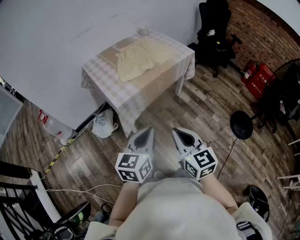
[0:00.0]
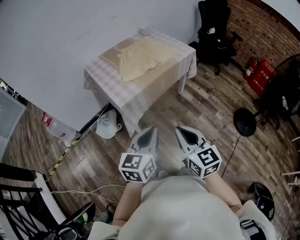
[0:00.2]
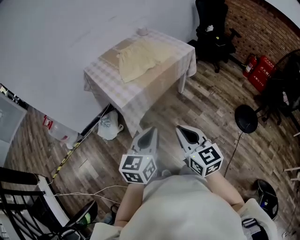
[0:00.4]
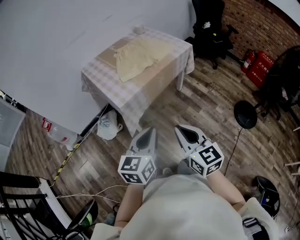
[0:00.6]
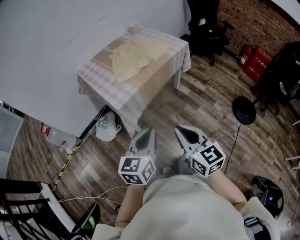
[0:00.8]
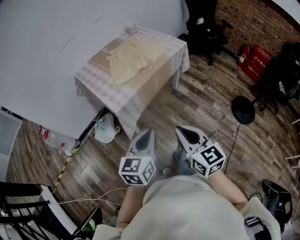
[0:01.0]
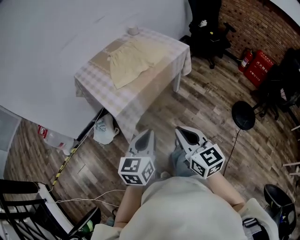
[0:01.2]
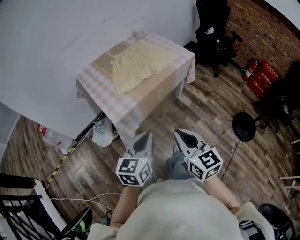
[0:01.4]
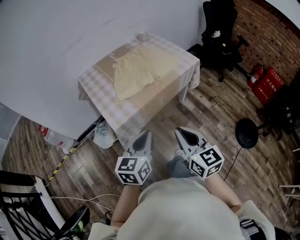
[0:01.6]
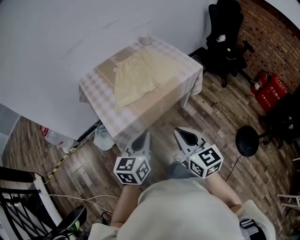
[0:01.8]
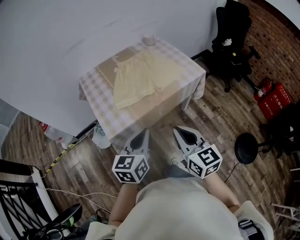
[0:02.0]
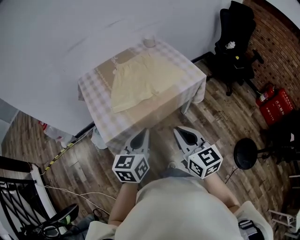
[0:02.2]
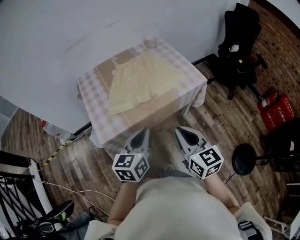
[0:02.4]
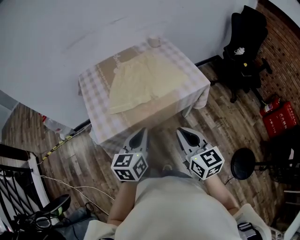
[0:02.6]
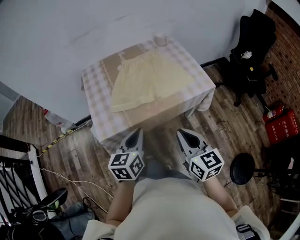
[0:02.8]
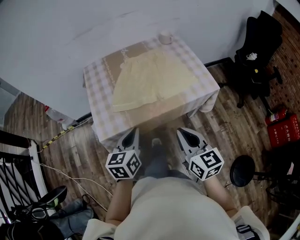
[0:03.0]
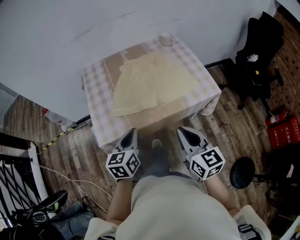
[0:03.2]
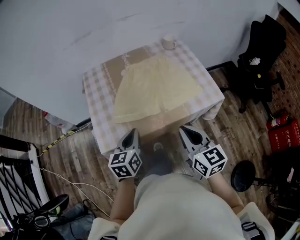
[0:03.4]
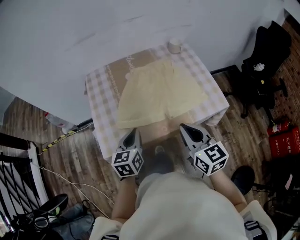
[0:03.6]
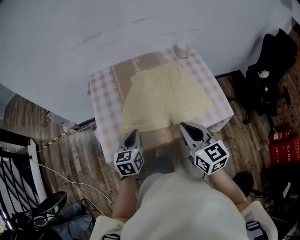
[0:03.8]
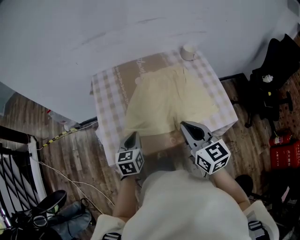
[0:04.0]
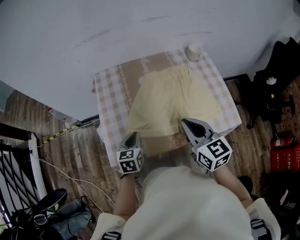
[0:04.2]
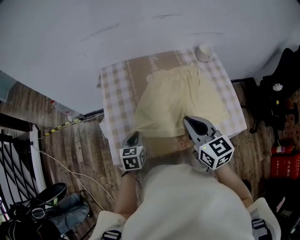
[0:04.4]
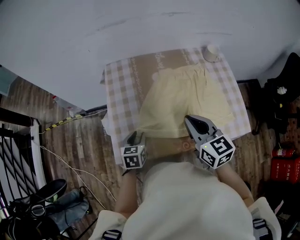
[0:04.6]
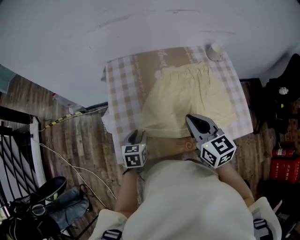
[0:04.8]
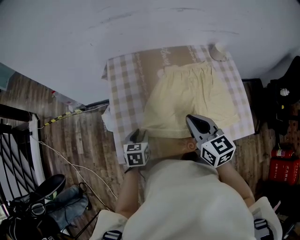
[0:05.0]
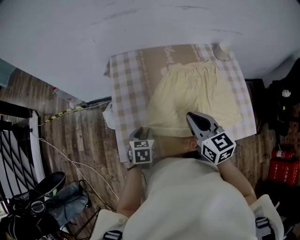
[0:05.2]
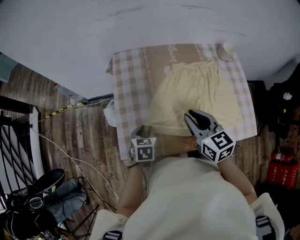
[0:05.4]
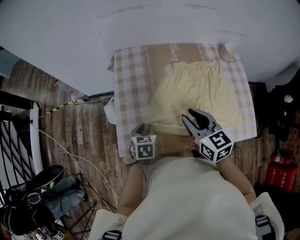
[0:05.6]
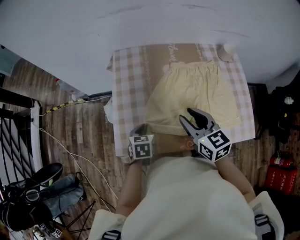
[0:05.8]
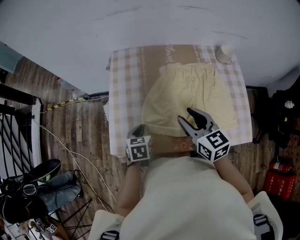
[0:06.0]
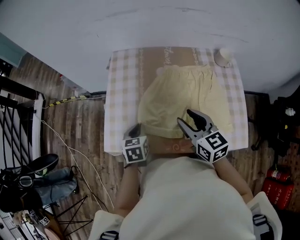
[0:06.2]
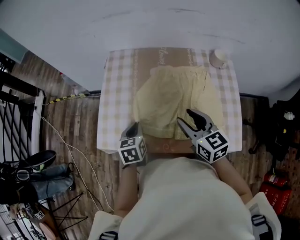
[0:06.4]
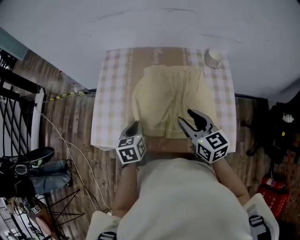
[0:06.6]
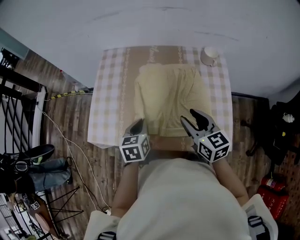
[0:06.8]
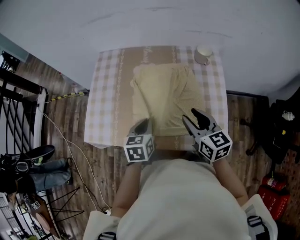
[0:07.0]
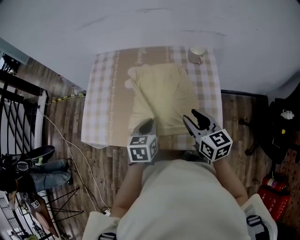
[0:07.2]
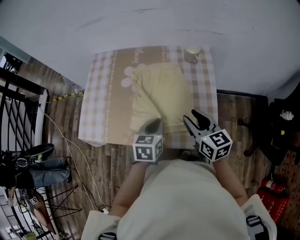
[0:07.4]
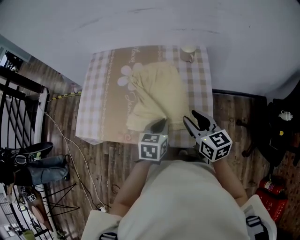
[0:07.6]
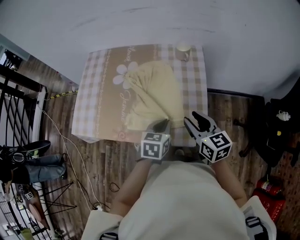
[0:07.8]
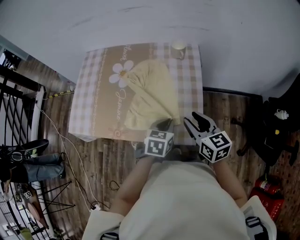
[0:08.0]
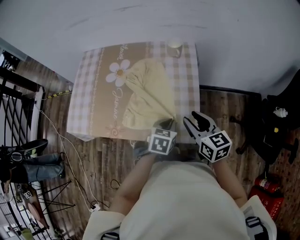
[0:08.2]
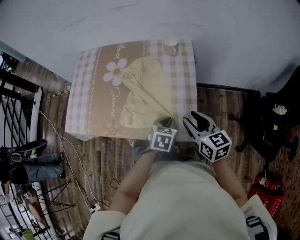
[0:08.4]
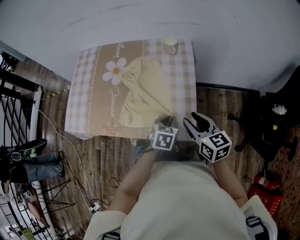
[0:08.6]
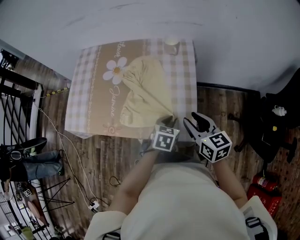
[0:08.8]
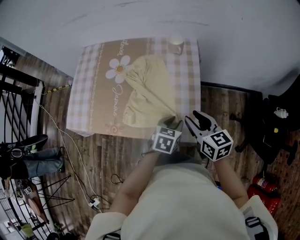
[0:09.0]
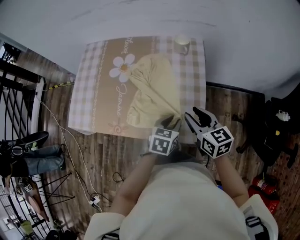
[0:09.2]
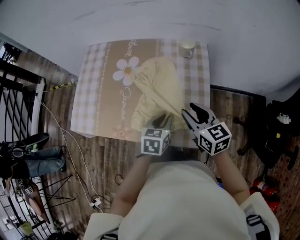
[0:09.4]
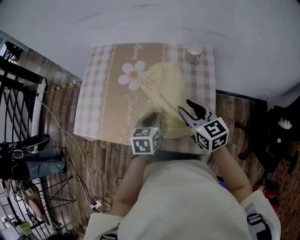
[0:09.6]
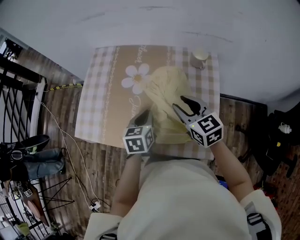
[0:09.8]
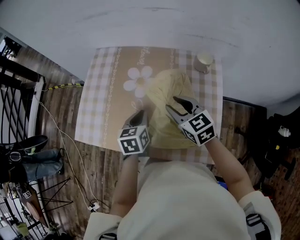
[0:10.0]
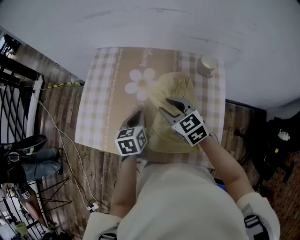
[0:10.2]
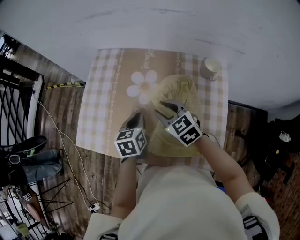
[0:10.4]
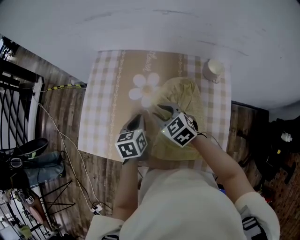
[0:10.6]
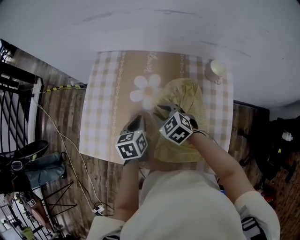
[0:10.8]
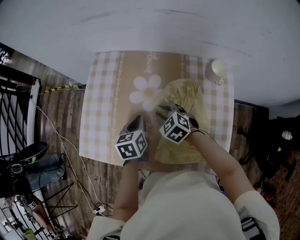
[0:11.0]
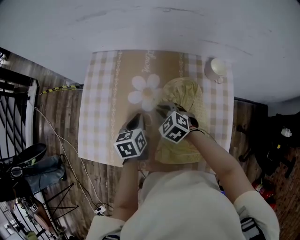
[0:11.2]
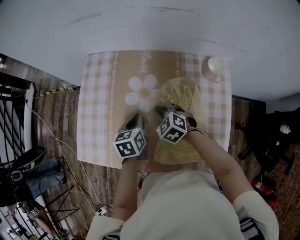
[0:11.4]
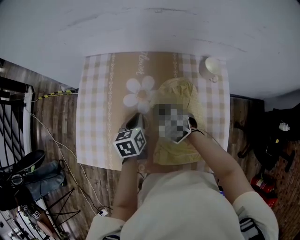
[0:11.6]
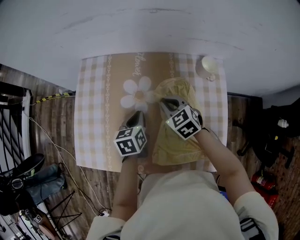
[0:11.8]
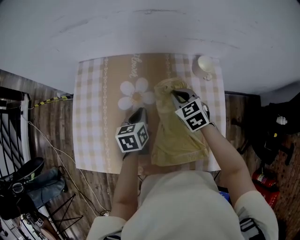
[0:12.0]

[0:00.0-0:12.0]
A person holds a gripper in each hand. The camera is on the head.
0:00.0 to 0:01.6: Both grippers move forward, roughly 15 cm.
0:01.6 to 0:03.0: The right gripper is displaced forward and to the right by roughly 20 cm; the left gripper shifts about 15 cm forward, and turns by roughly 30 degrees.
0:03.0 to 0:04.4: The right gripper goes some 25 cm forward, while the left gripper is displaced forward, downward and to the left by some 25 cm, and swivels roughly 20 degrees.
0:04.4 to 0:06.0: The left gripper opens, then closes once more; the right gripper is displaced downward by some 5 cm, and opens up.
0:06.0 to 0:07.6: The two grippers go roughly 30 cm to the right.
0:07.6 to 0:09.0: The right gripper heads to the right, covering about 5 cm; the left gripper is displaced to the right by approximately 15 cm, and opens its fingers.
0:09.0 to 0:10.4: The right gripper changes place by some 30 cm, and swivels some 30 degrees. Meanwhile the left gripper changes place by about 35 cm, rotates roughly 30 degrees, and closes.
0:10.4 to 0:12.0: The left gripper shifts approximately 5 cm forward. The right gripper shifts about 15 cm to the right and forward, swivels some 20 degrees, and closes.

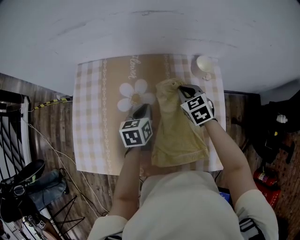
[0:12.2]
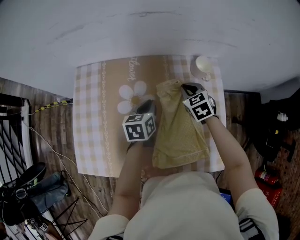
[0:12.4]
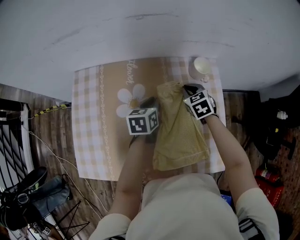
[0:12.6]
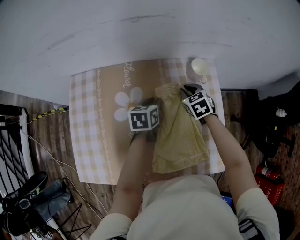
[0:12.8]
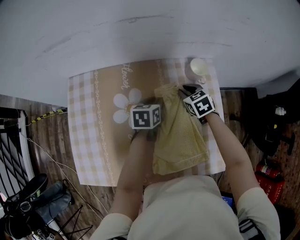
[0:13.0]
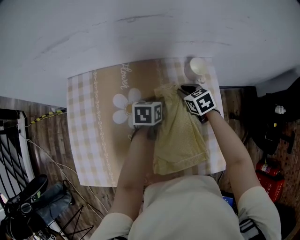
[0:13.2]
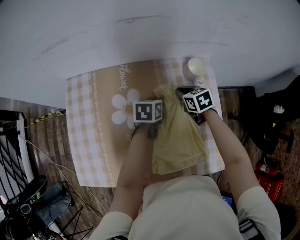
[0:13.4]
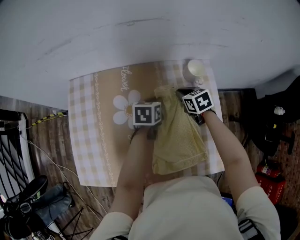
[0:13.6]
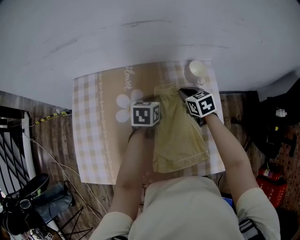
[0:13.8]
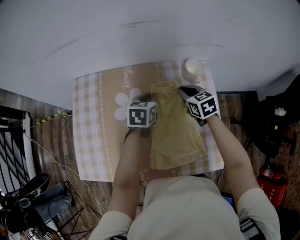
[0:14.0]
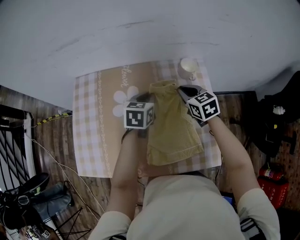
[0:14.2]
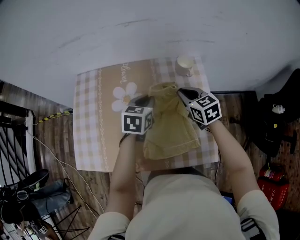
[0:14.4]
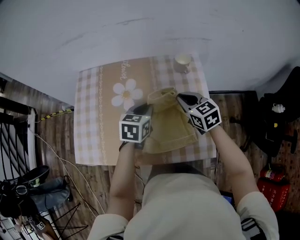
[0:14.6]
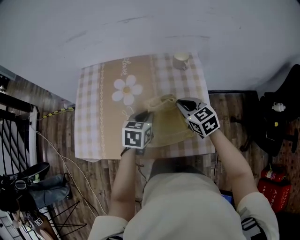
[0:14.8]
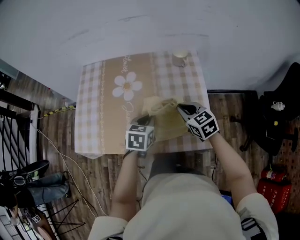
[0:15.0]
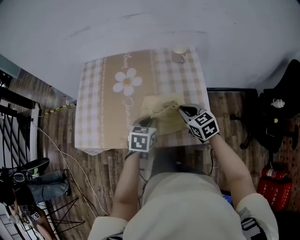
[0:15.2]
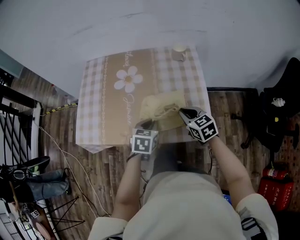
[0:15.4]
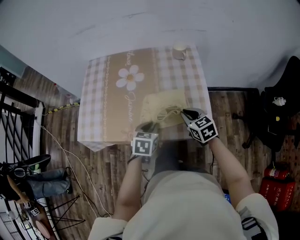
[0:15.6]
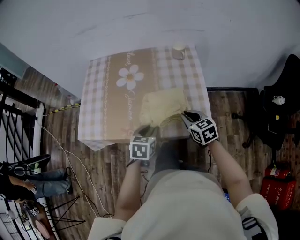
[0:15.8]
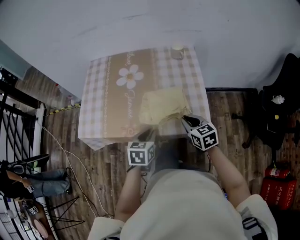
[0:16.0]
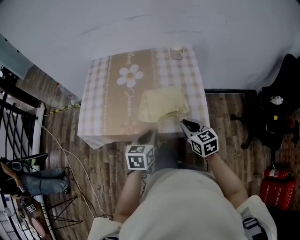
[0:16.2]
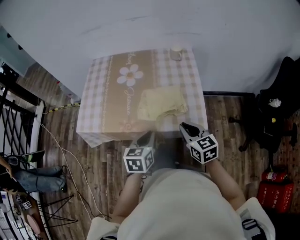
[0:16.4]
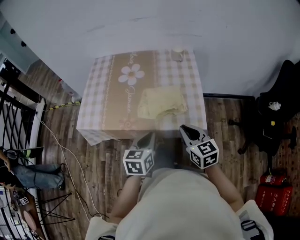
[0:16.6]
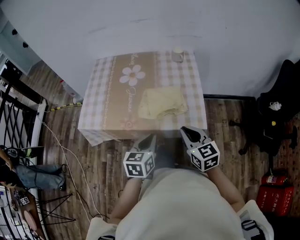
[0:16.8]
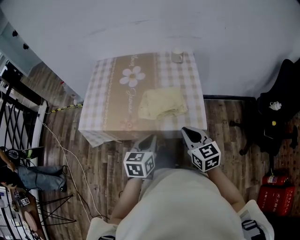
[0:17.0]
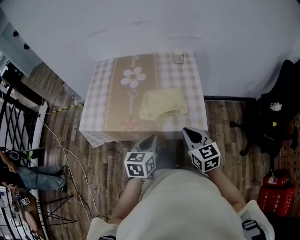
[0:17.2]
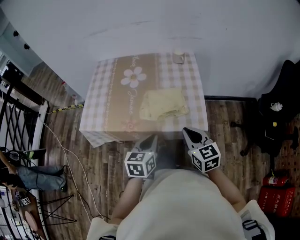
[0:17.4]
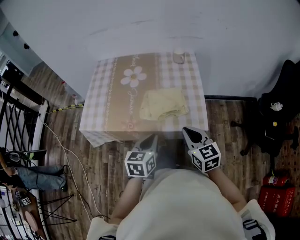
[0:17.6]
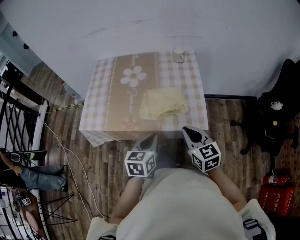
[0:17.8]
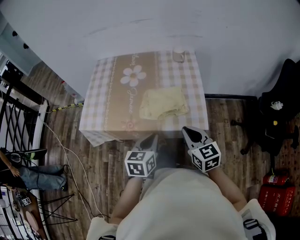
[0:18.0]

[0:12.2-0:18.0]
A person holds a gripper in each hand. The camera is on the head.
0:12.2 to 0:13.6: The left gripper travels forward and to the right by roughly 10 cm; the right gripper shifts by about 5 cm, and changes its angle by approximately 20 degrees.
0:13.6 to 0:15.0: The right gripper moves backward and upward, about 25 cm, and turns by about 20 degrees. The left gripper heads backward, covering about 25 cm.
0:15.0 to 0:16.6: Both grippers travel together backward, about 20 cm.
0:16.6 to 0:18.0: The grippers stay close to where they were, moving slightly.

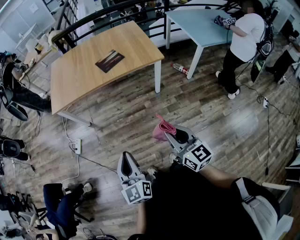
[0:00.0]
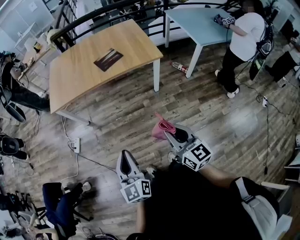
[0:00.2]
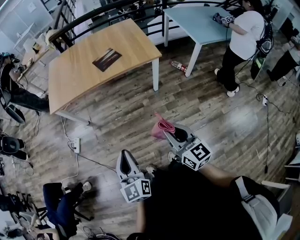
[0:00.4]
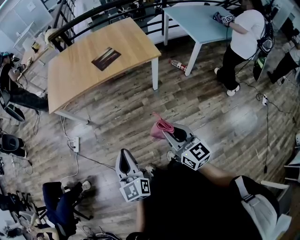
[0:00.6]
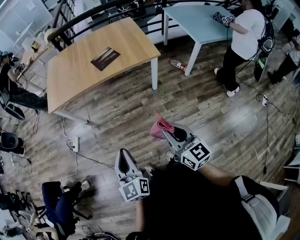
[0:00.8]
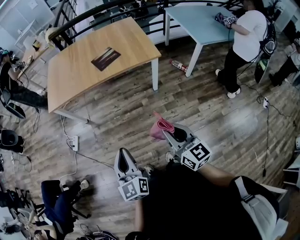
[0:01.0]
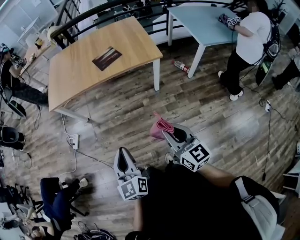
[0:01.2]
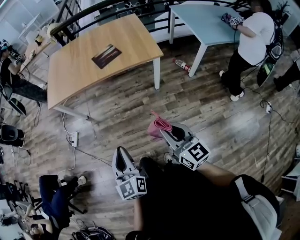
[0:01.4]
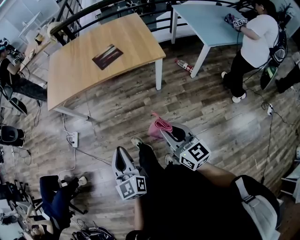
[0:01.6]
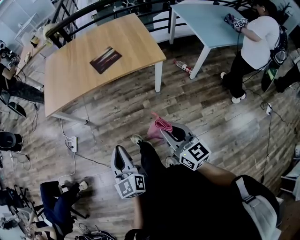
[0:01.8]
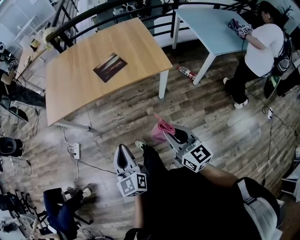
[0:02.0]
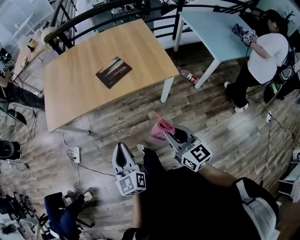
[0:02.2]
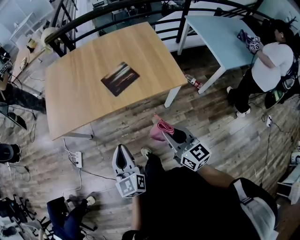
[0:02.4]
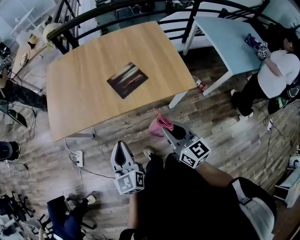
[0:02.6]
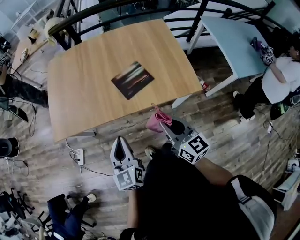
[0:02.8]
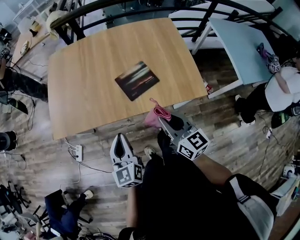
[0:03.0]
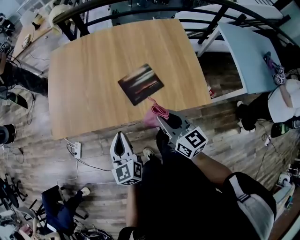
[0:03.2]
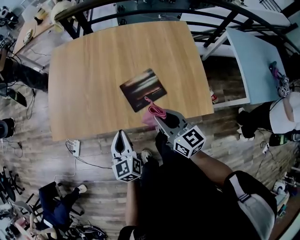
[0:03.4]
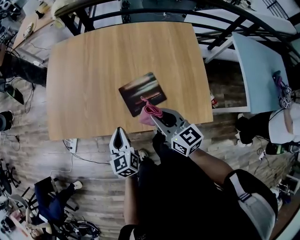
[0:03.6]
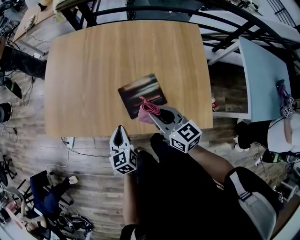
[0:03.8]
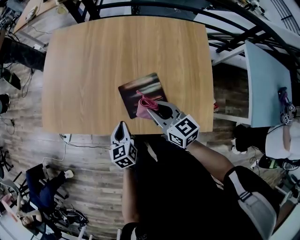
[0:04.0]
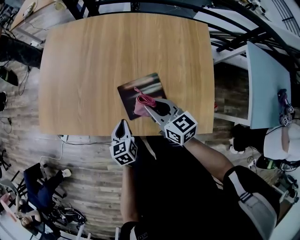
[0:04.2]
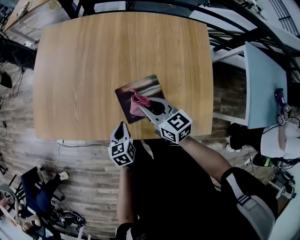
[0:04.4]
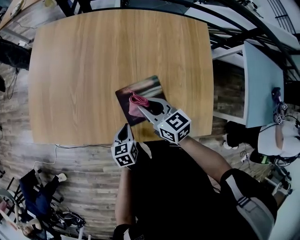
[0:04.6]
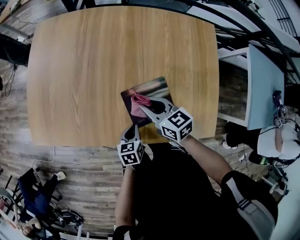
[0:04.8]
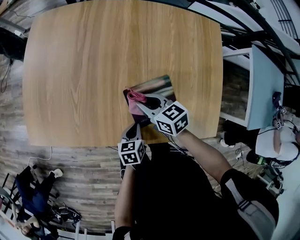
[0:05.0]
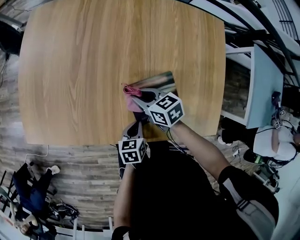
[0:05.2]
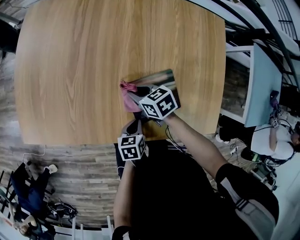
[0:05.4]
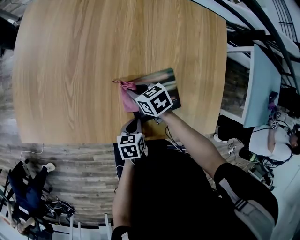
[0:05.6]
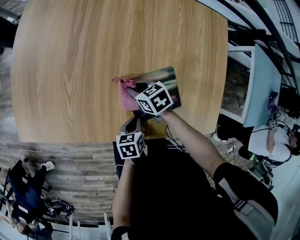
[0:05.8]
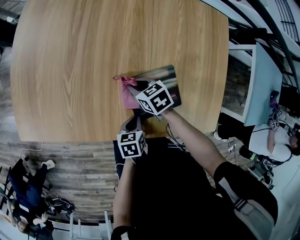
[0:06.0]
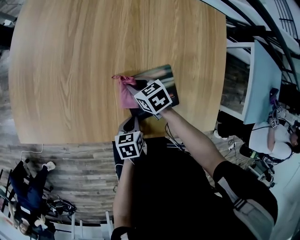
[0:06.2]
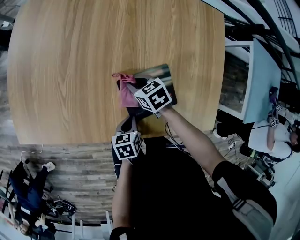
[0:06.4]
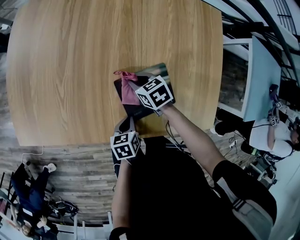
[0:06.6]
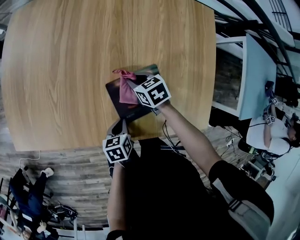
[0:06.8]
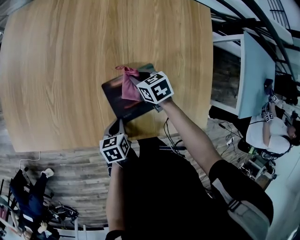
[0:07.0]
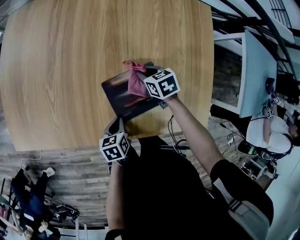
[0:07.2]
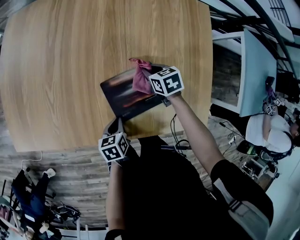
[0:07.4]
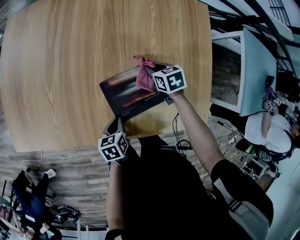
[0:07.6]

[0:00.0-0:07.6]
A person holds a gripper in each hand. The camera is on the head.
0:00.0 to 0:01.6: The grippers both shift to the right and forward by approximately 10 cm.
0:01.6 to 0:03.0: Both grippers are carried forward, about 50 cm.
0:03.0 to 0:04.6: The right gripper moves forward and downward, some 35 cm, and turns by some 30 degrees; the left gripper is displaced downward, forward and to the right by some 35 cm, and points its fingers some 30 degrees further downward.
0:04.6 to 0:06.0: The left gripper travels downward by about 5 cm, while the right gripper is displaced downward by some 20 cm, and swivels some 30 degrees.
0:06.0 to 0:07.6: The right gripper heads to the right, covering about 20 cm.
